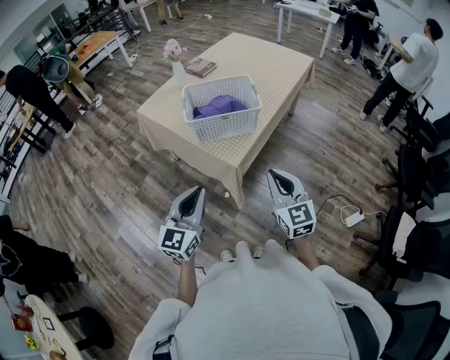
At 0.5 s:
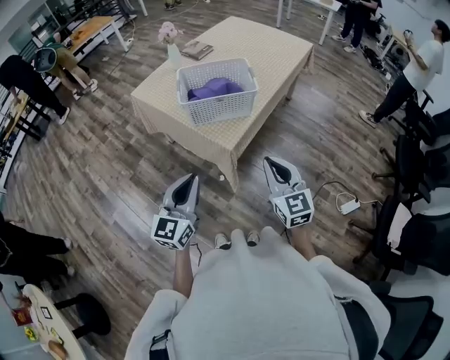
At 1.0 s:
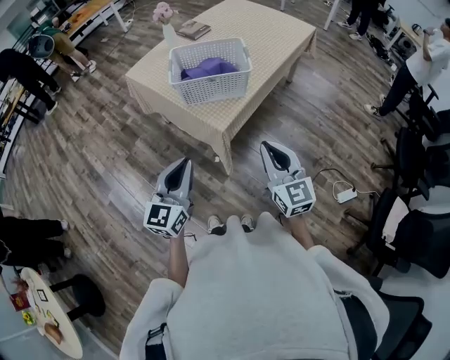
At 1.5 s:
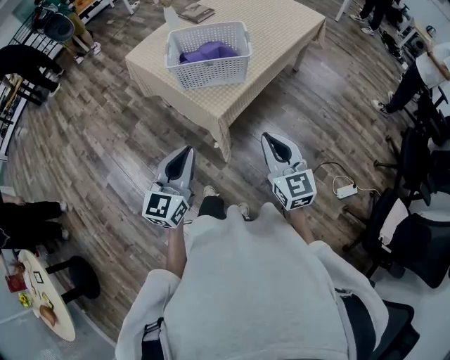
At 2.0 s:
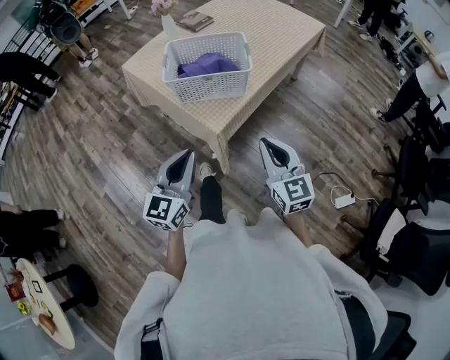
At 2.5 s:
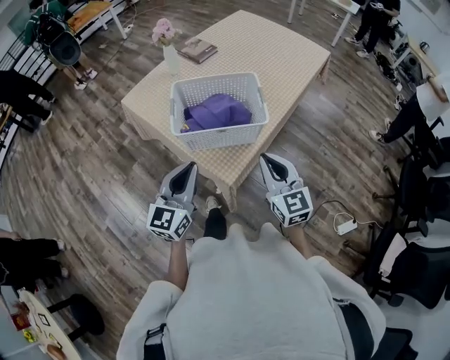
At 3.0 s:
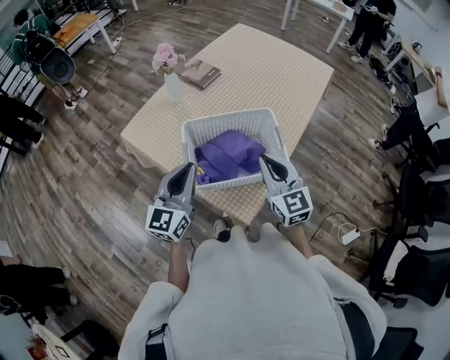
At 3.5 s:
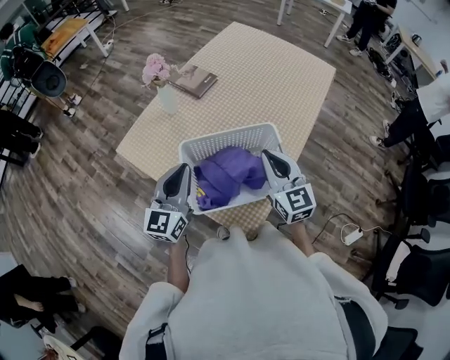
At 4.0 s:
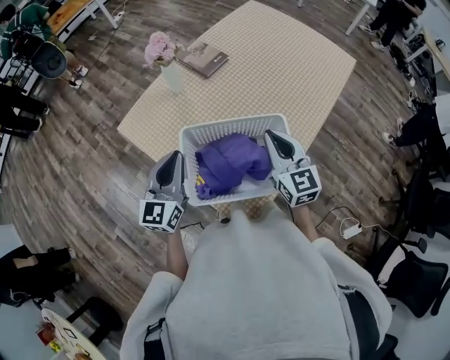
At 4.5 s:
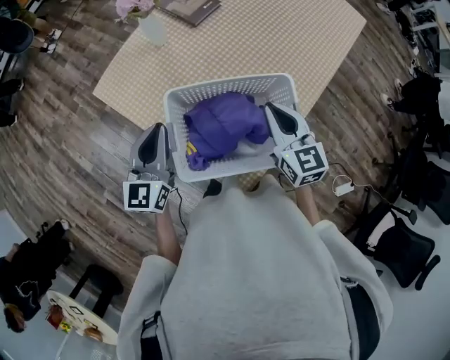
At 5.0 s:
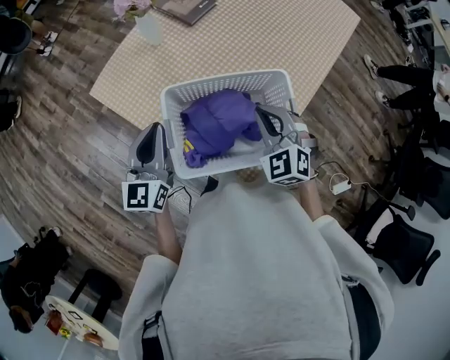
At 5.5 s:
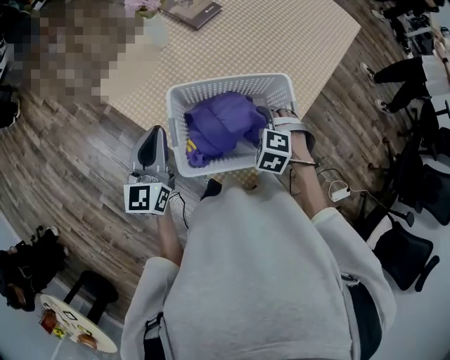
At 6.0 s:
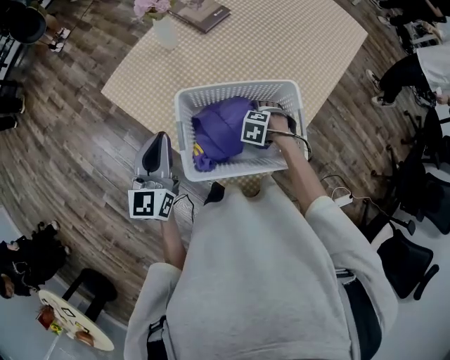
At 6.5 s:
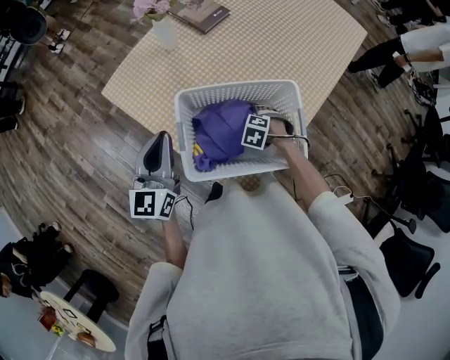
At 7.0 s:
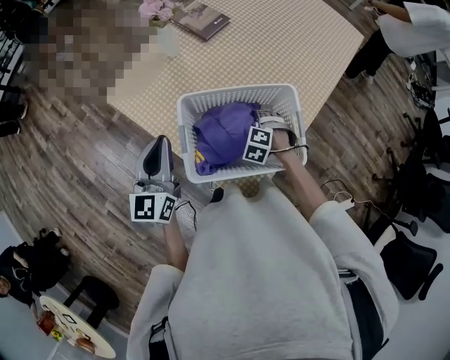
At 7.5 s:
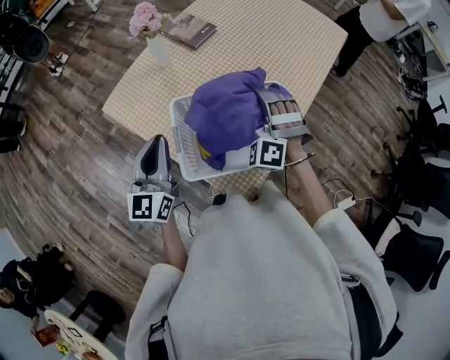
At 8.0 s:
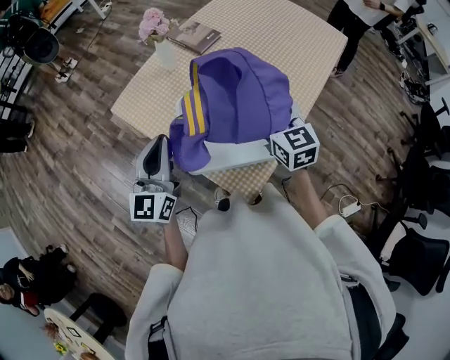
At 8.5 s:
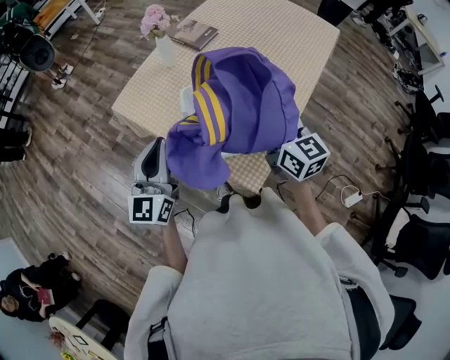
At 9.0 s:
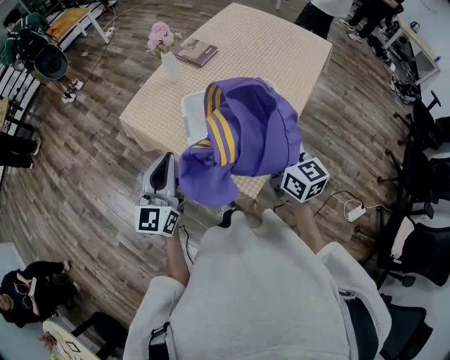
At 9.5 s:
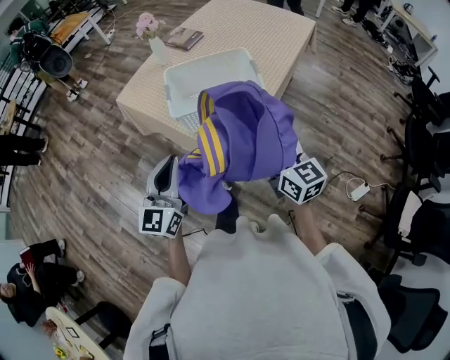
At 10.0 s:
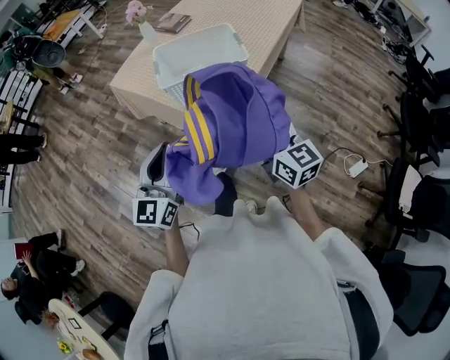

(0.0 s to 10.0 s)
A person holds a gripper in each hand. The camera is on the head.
0.0 s - 2.0 s: Both grippers travel together to the right, roughly 5 cm.
2.0 s - 4.0 s: The two grippers travel together, forward, roughly 50 cm.
4.0 s - 6.0 s: The right gripper goes approximately 30 cm downward, tilts its fingers about 80 degrees downward, and opens its fingers. The left gripper changes place by about 5 cm.
6.0 s - 8.0 s: The right gripper moves upward, roughly 30 cm, points its fingers roughly 70 degrees further upward, and closes its fingers. The left gripper travels upward by roughly 5 cm.
8.0 s - 10.0 s: Both grippers move backward, some 40 cm.

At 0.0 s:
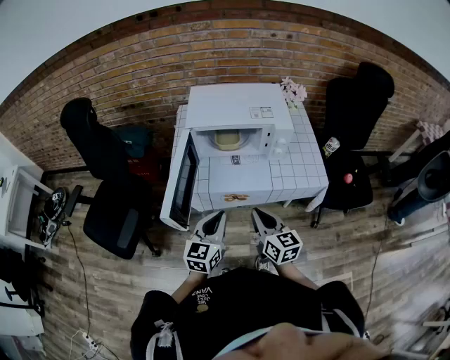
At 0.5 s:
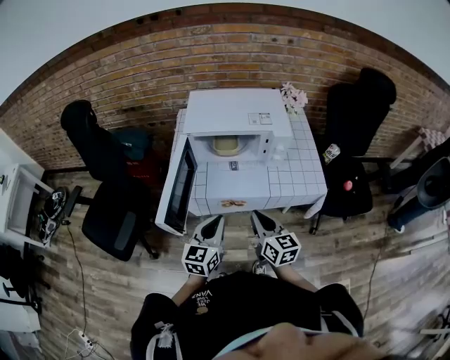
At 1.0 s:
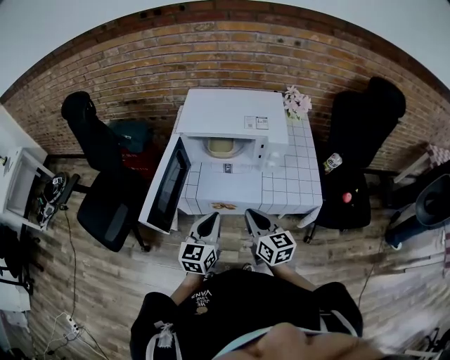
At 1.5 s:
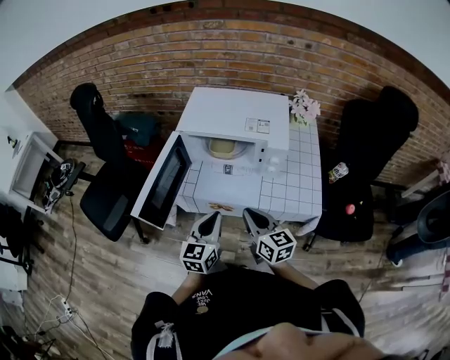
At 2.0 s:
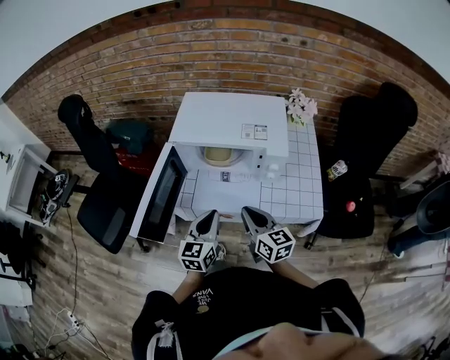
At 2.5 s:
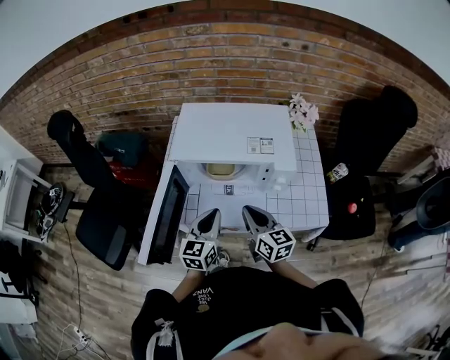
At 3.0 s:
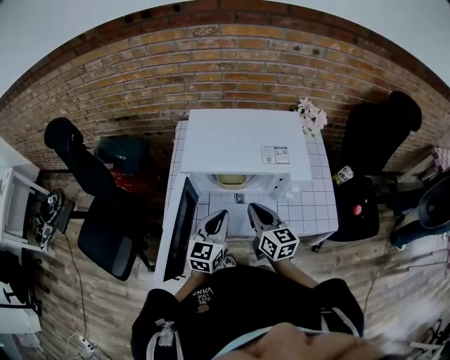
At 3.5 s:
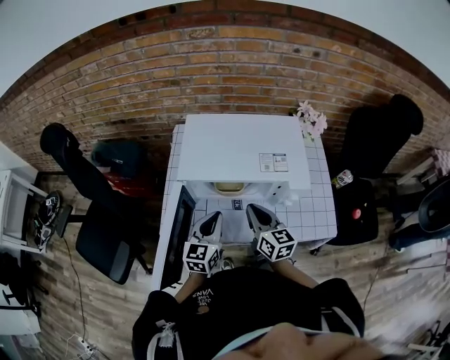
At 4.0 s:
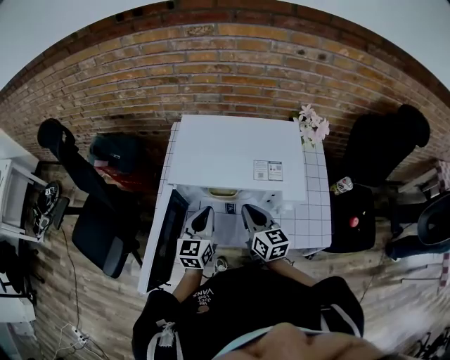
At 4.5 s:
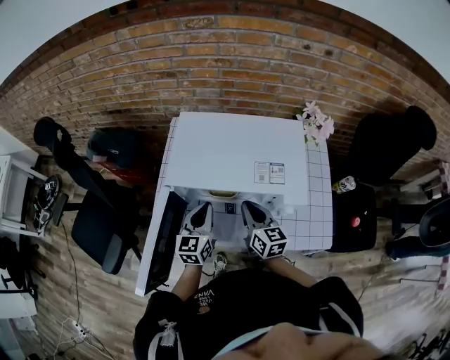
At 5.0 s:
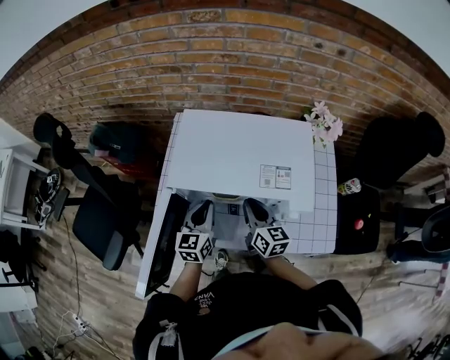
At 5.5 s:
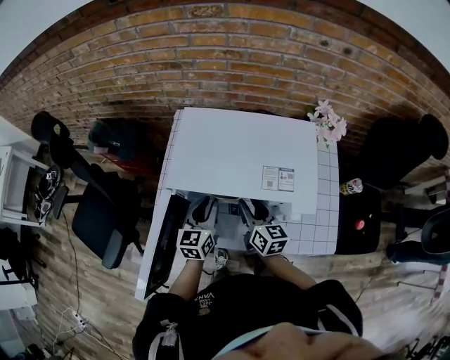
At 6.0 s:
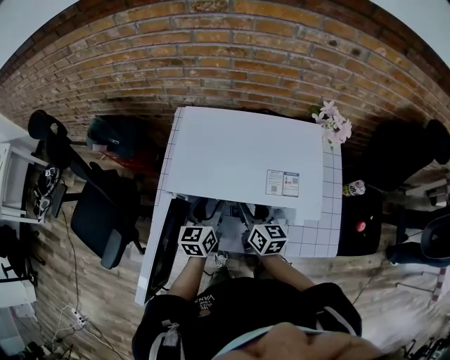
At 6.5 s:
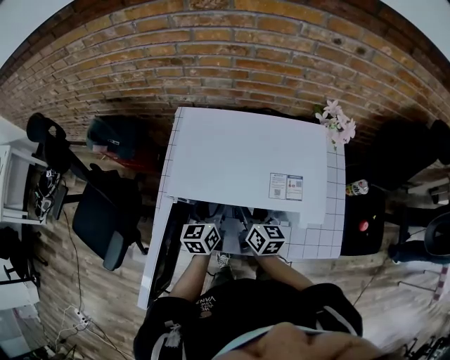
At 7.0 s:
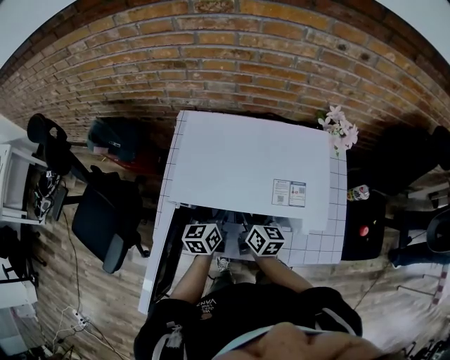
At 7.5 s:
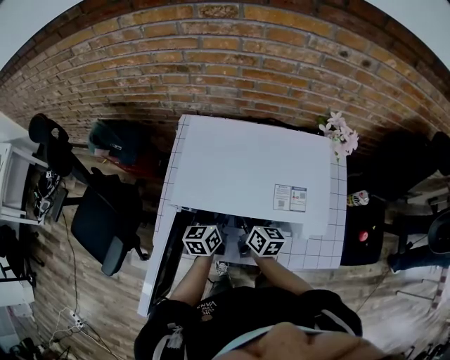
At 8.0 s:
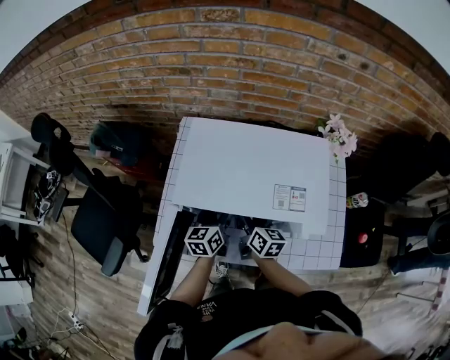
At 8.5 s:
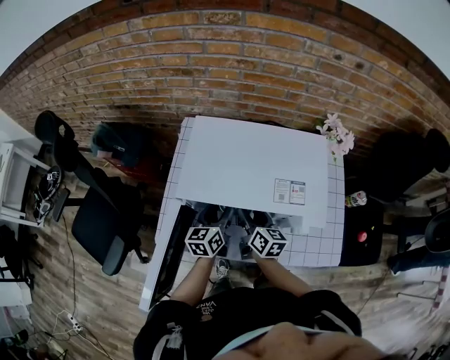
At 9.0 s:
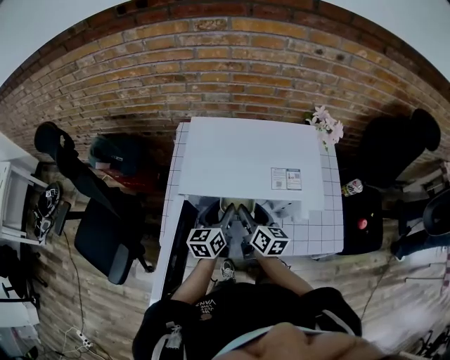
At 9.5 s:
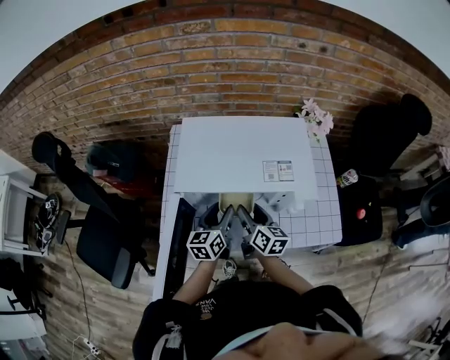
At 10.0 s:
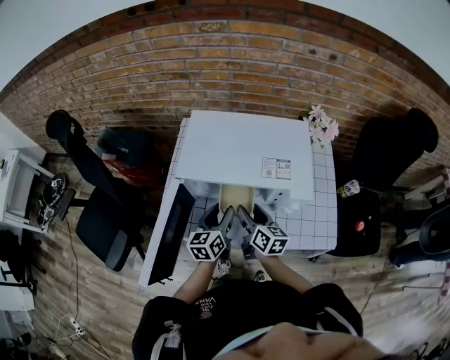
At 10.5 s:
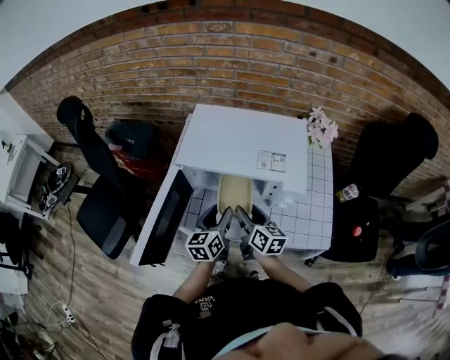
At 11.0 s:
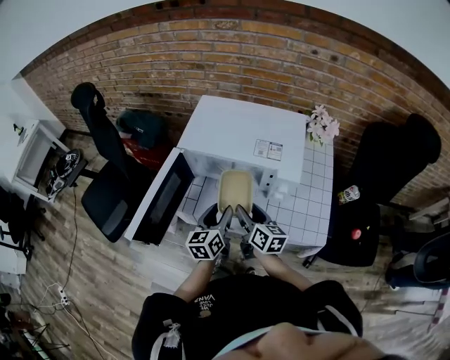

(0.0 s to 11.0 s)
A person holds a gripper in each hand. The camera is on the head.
0.0 s - 2.0 s: Both grippers move forward and to the right, some 15 cm.
2.0 s - 3.5 s: Both grippers move forward, approximately 15 cm.
3.5 s - 5.5 s: The right gripper goes some 10 cm forward and downward, and opens its fingers; the left gripper shifts roughly 10 cm forward.
5.5 s - 7.5 s: The left gripper travels forward by approximately 5 cm, and opens up. The right gripper moves about 5 cm.
7.5 s - 9.0 s: The left gripper moves roughly 5 cm. Meanwhile the right gripper changes place by approximately 5 cm.
9.0 s - 11.0 s: The grippers both shift backward by roughly 15 cm.

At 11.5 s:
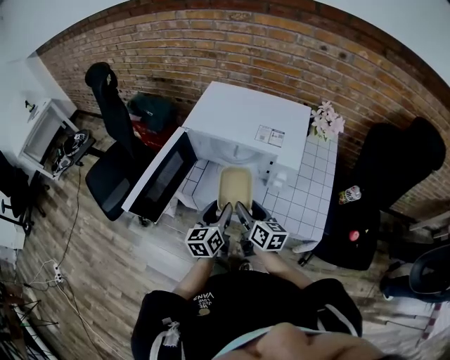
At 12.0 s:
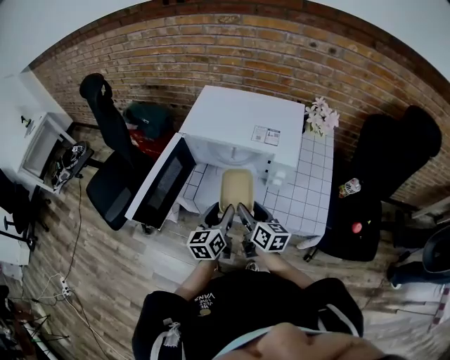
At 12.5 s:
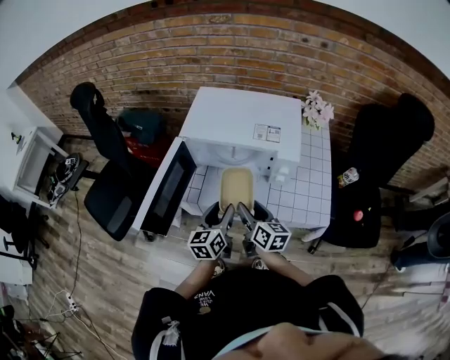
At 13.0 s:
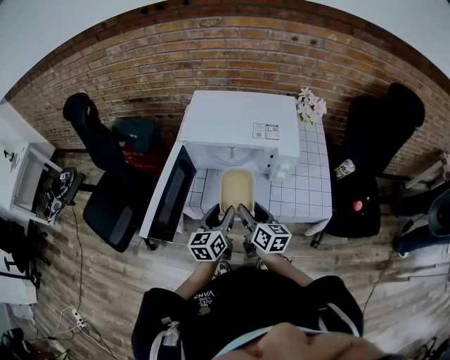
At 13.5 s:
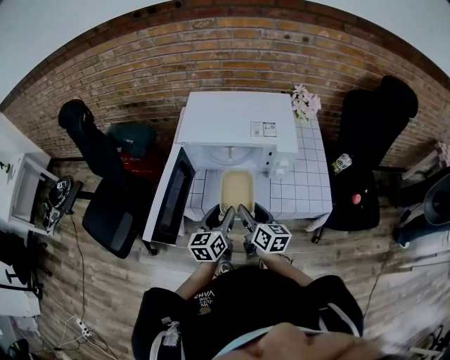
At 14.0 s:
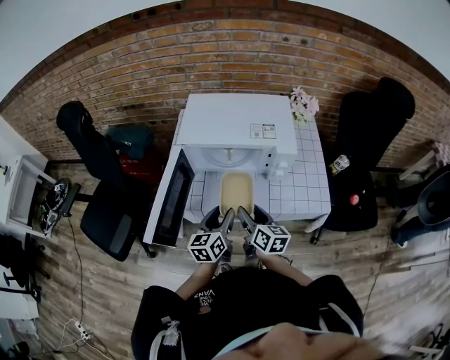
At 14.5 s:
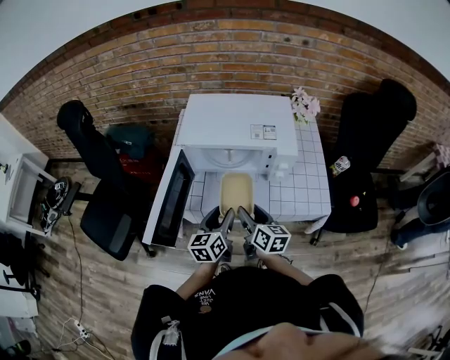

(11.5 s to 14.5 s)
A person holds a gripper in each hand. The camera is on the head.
11.5 s - 13.0 s: There are only small adjustments of the grippers.
13.0 s - 14.5 s: Both grippers stay about where they are.

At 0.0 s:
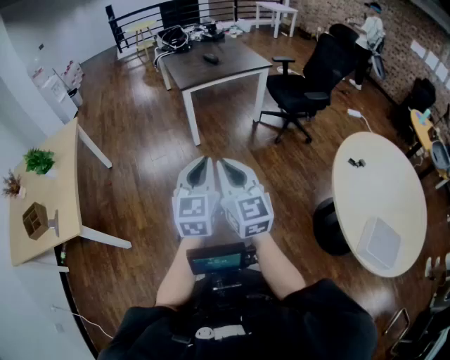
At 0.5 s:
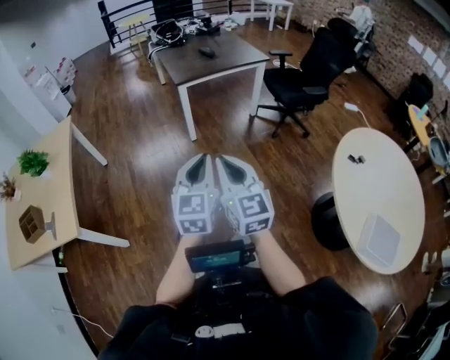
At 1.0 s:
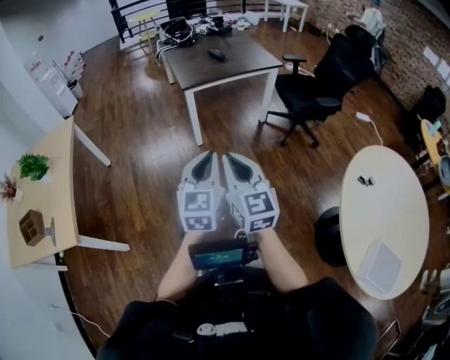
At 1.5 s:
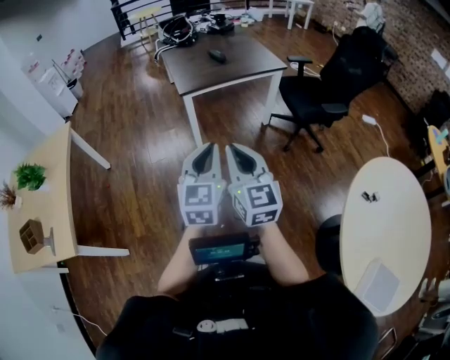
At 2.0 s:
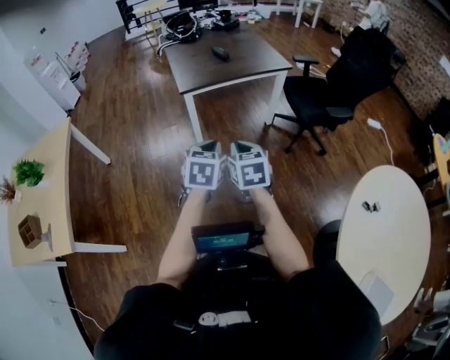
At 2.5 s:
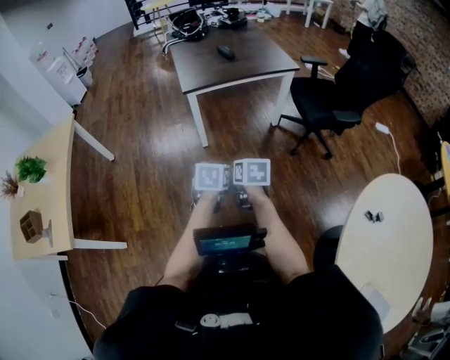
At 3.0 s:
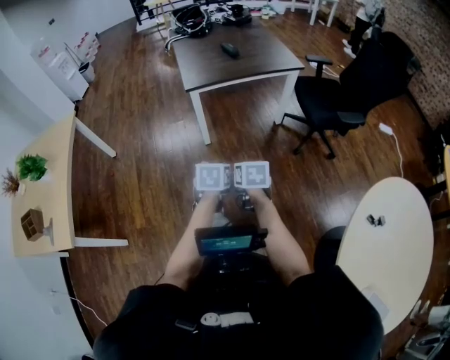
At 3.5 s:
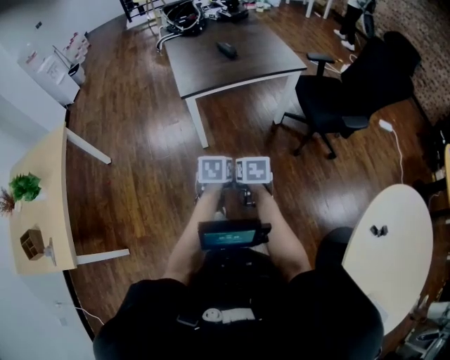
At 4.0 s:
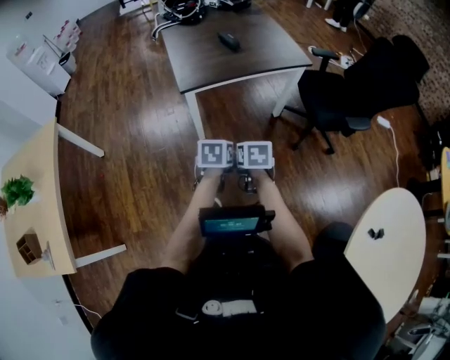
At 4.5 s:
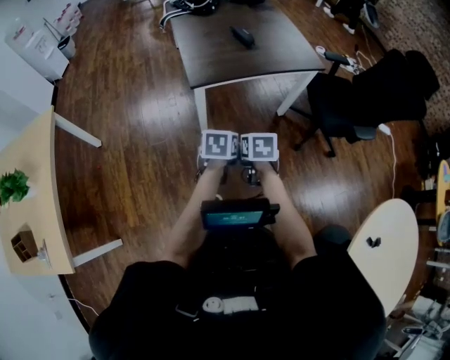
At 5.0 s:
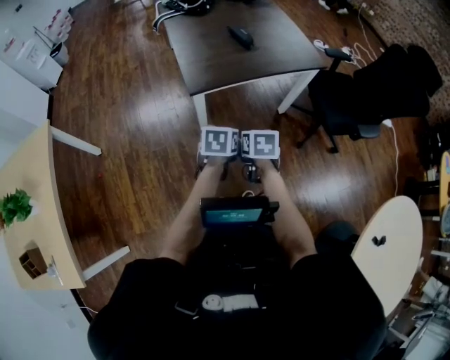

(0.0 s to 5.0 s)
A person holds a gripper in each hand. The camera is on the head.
0.0 s - 2.5 s: The grippers both shift forward and downward by some 40 cm. The right gripper points its fingers some 40 degrees further downward; the left gripper angles its fingers downward, by some 40 degrees.
2.5 s - 5.0 s: Both grippers travel together forward, approximately 30 cm.
